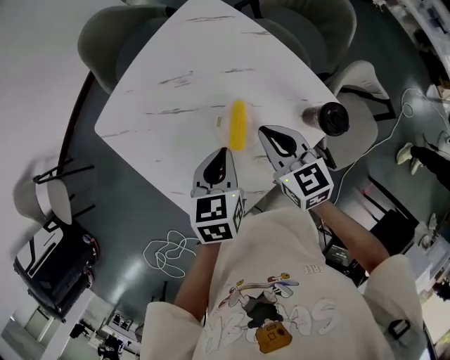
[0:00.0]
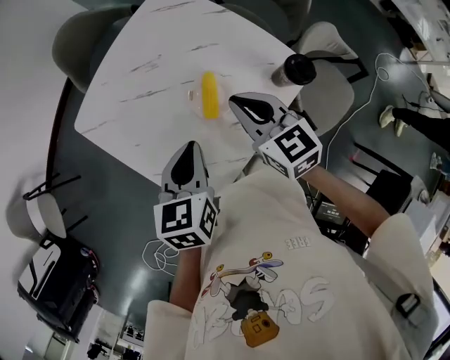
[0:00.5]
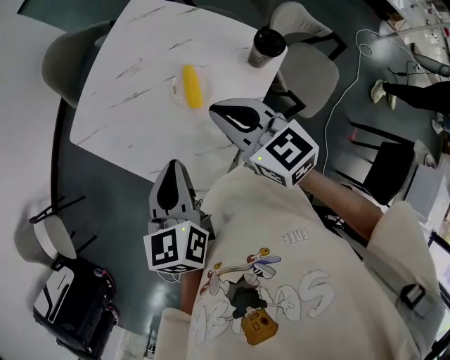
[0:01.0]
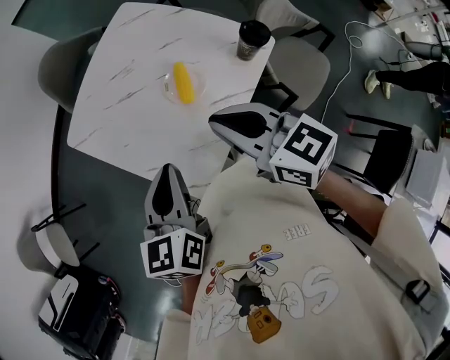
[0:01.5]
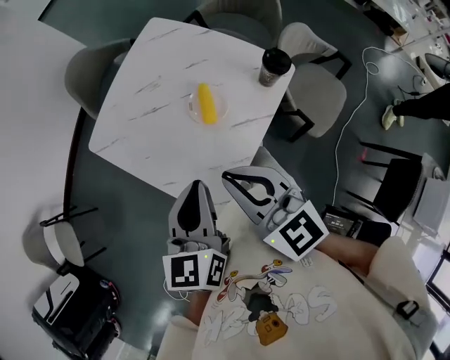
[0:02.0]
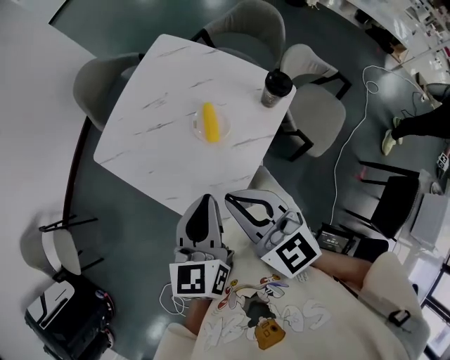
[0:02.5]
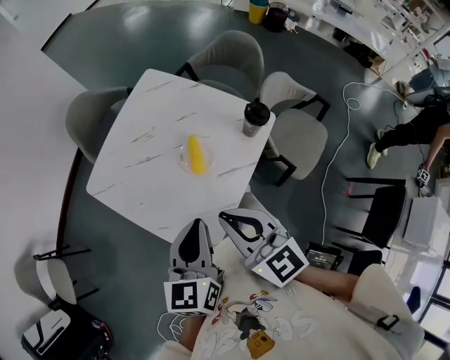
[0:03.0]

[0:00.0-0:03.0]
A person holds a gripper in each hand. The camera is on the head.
0:00.0 to 0:01.5: The left gripper moves backward, upward and to the left, approximately 25 cm. The right gripper heads backward and upward, covering roughly 25 cm.
0:01.5 to 0:03.0: The right gripper shifts by approximately 5 cm, while the left gripper shifts by about 5 cm.

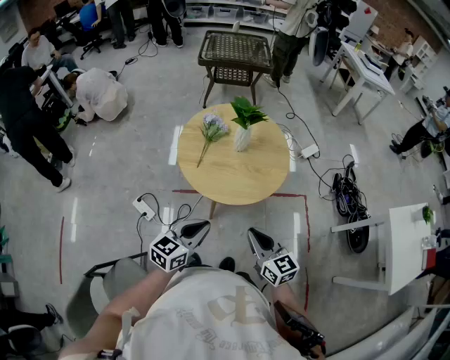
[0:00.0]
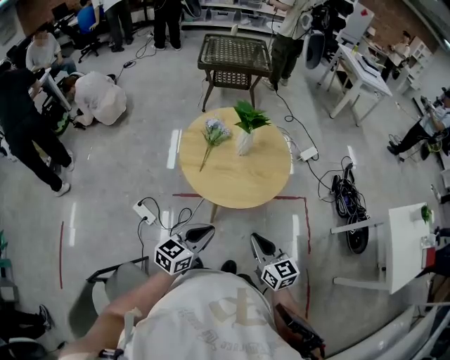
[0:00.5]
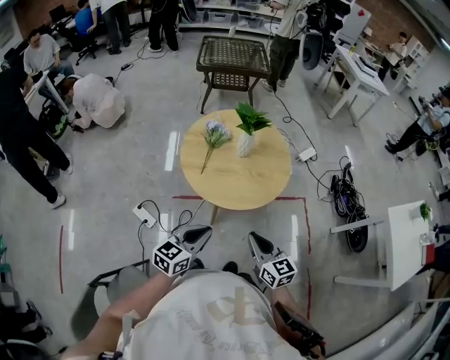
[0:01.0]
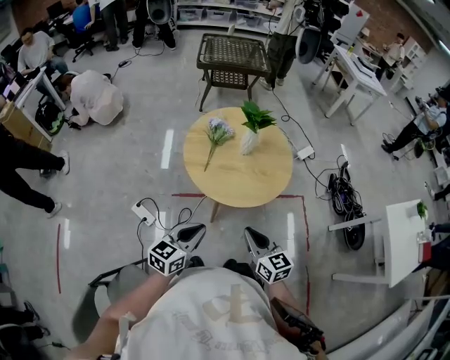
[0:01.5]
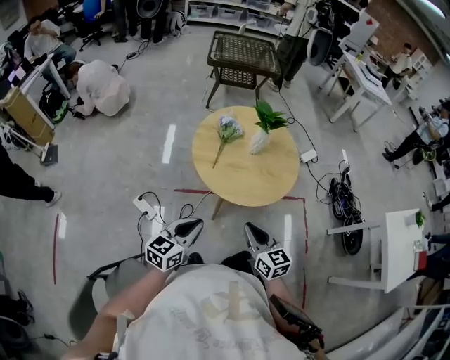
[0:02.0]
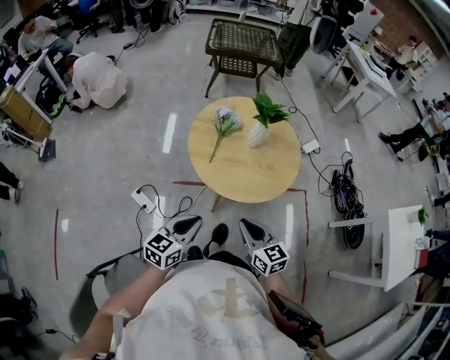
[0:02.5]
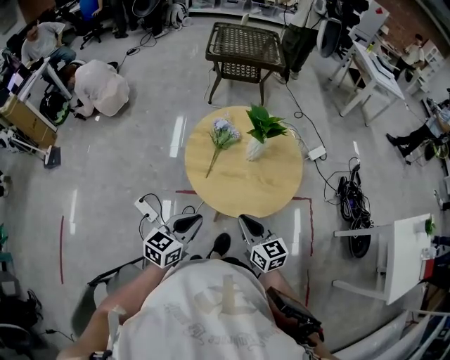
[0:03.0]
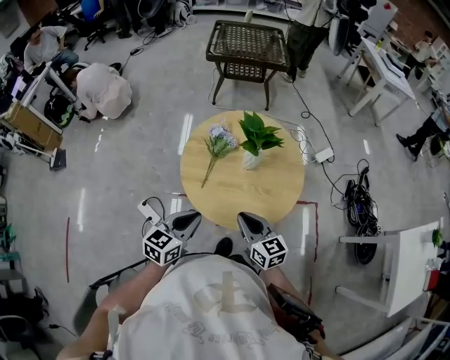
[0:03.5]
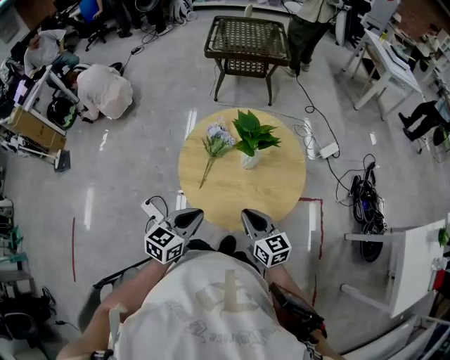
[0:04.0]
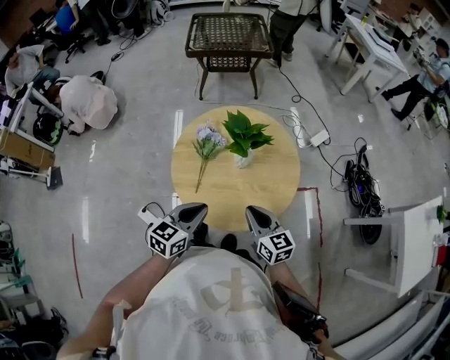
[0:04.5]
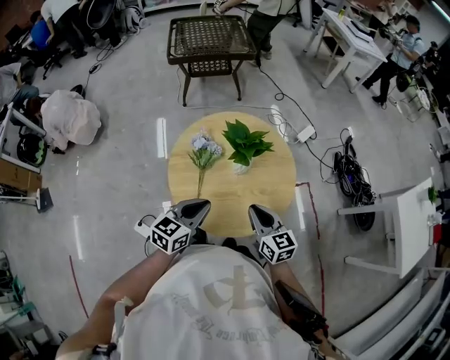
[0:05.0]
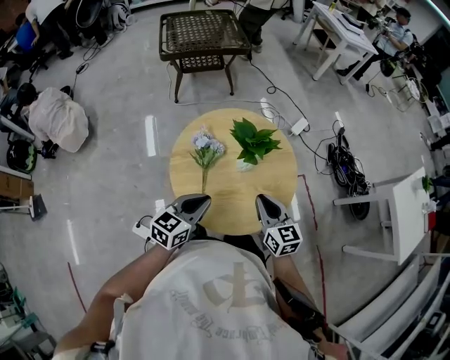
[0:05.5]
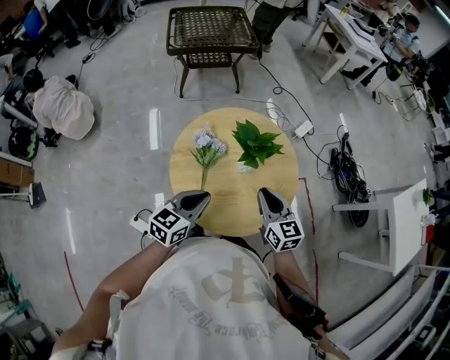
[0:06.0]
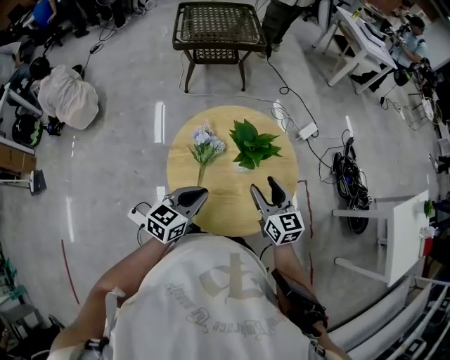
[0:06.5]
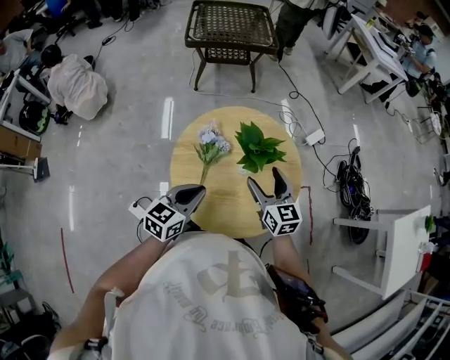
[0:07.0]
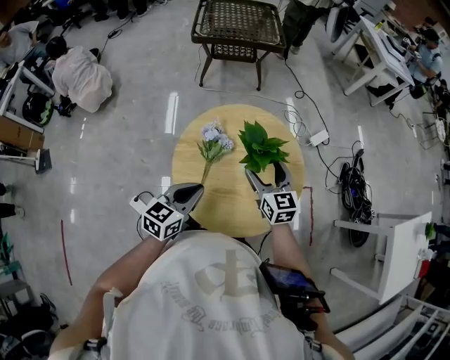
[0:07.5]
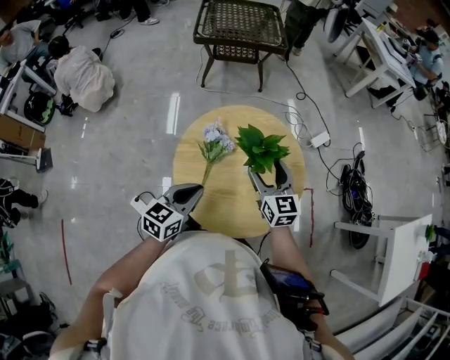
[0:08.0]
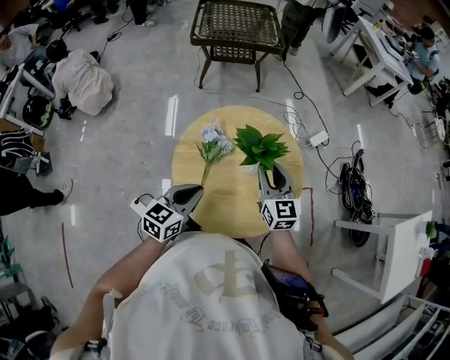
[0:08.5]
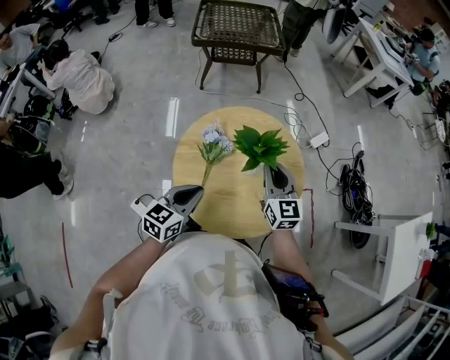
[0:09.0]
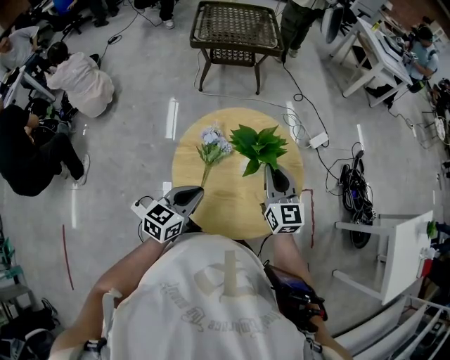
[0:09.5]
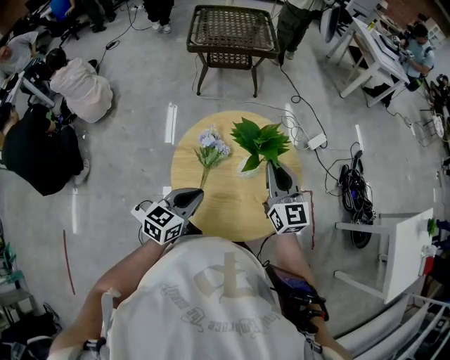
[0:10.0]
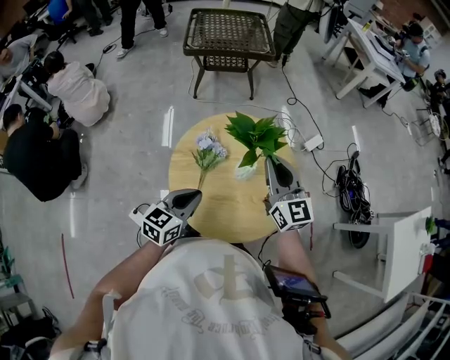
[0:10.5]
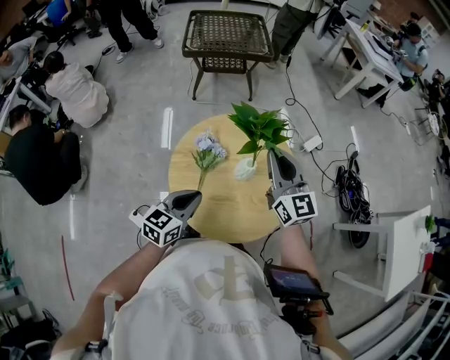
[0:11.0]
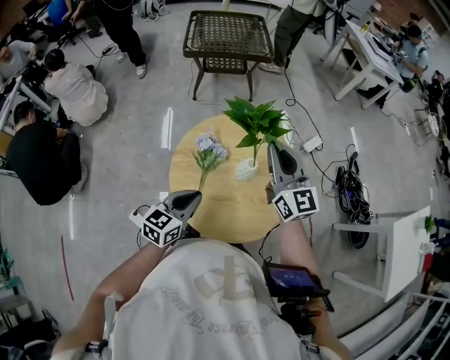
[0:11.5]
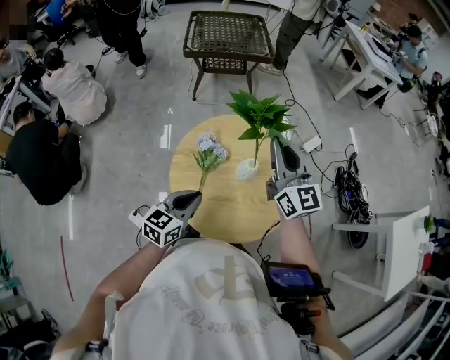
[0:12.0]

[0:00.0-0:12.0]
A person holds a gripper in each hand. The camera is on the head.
0:00.0 to 0:02.0: The two grippers go approximately 10 cm to the left.
0:02.0 to 0:04.0: The right gripper is displaced forward by roughly 20 cm; the left gripper heads forward and to the right, covering some 20 cm.
0:04.0 to 0:06.0: The left gripper shifts roughly 15 cm forward and to the left; the right gripper shifts some 10 cm forward, and changes its angle by about 20 degrees.
0:06.0 to 0:08.0: The right gripper shifts about 10 cm forward, and opens its fingers.
0:08.0 to 0:10.0: The right gripper heads upward, covering roughly 10 cm, and closes.
0:10.0 to 0:12.0: The right gripper is displaced upward by roughly 10 cm.

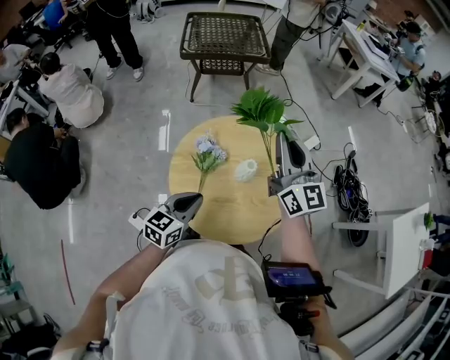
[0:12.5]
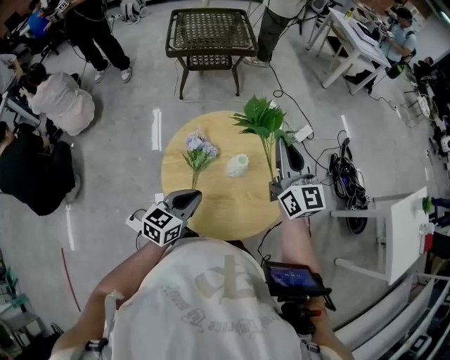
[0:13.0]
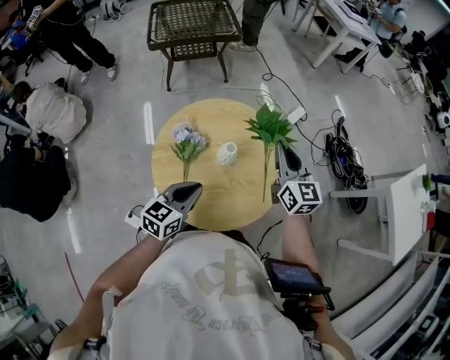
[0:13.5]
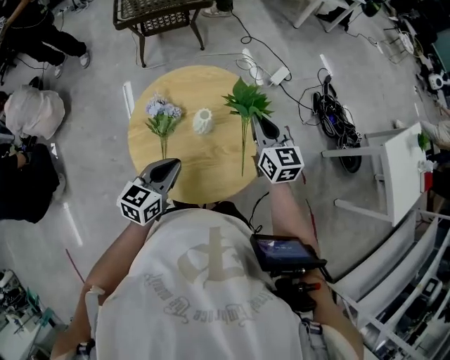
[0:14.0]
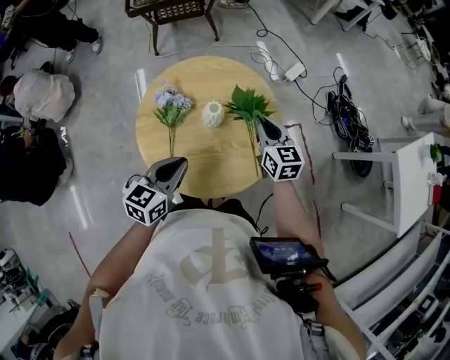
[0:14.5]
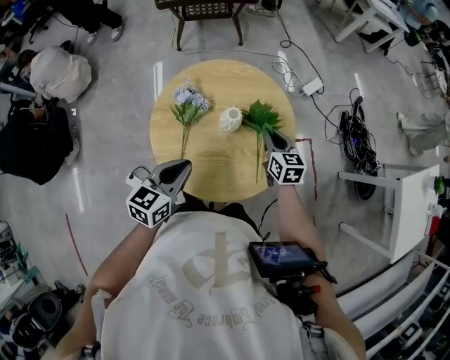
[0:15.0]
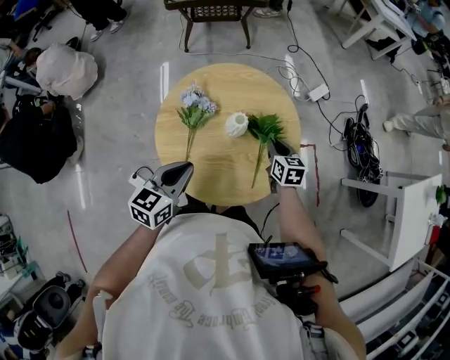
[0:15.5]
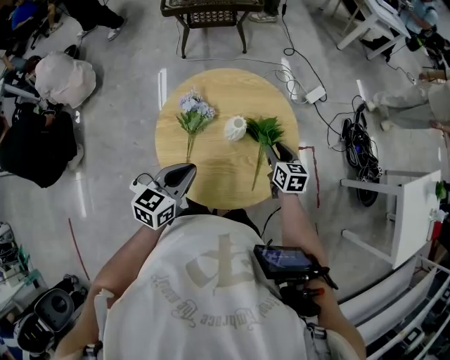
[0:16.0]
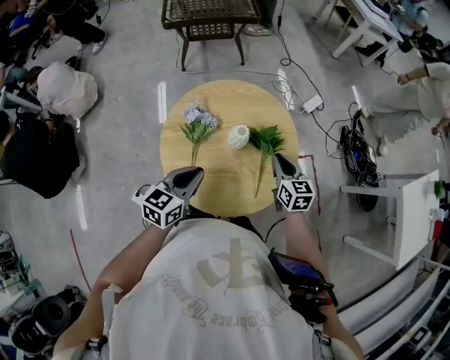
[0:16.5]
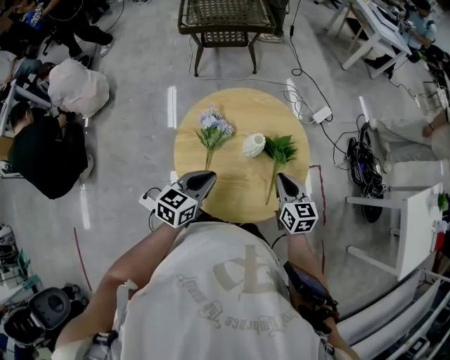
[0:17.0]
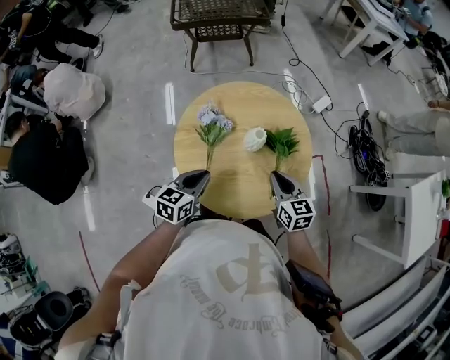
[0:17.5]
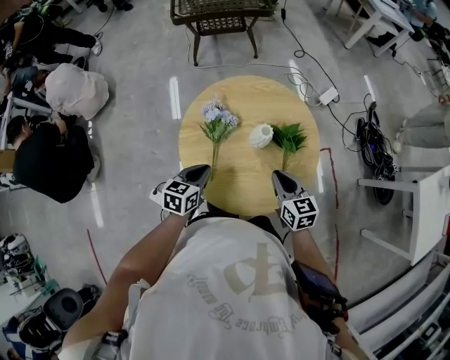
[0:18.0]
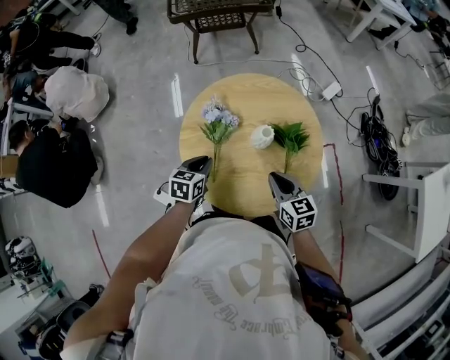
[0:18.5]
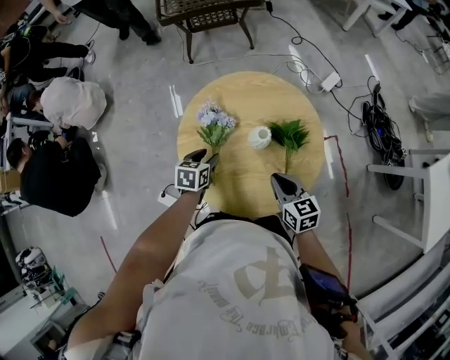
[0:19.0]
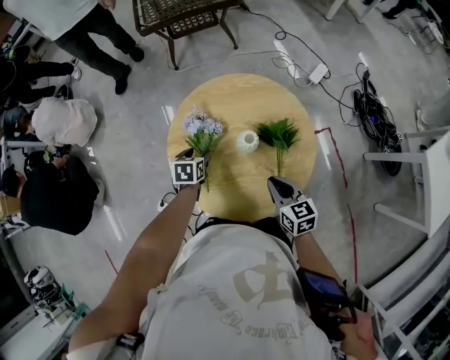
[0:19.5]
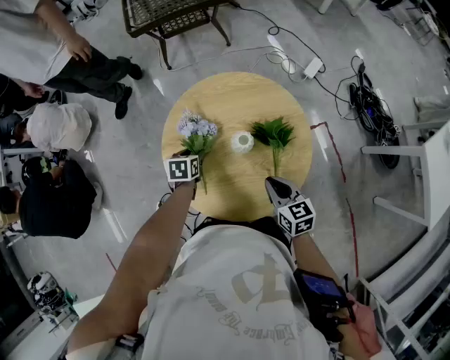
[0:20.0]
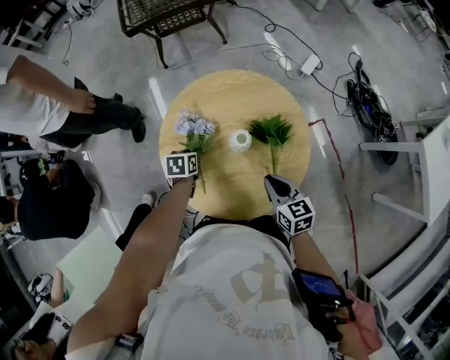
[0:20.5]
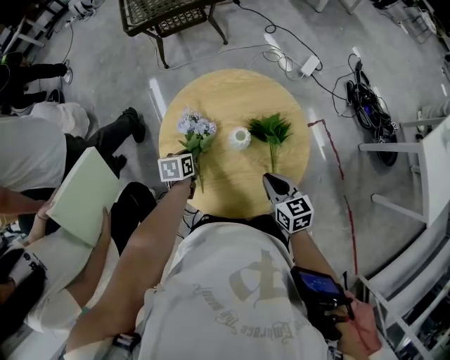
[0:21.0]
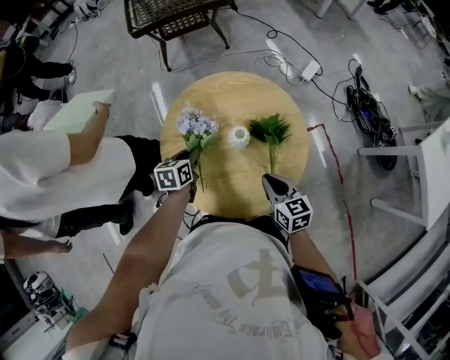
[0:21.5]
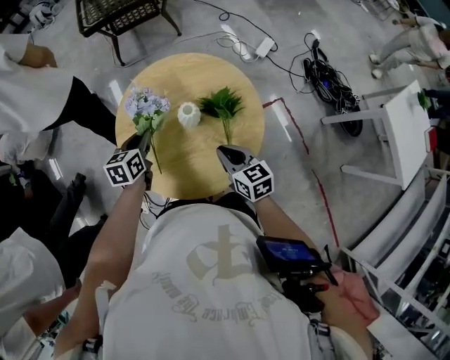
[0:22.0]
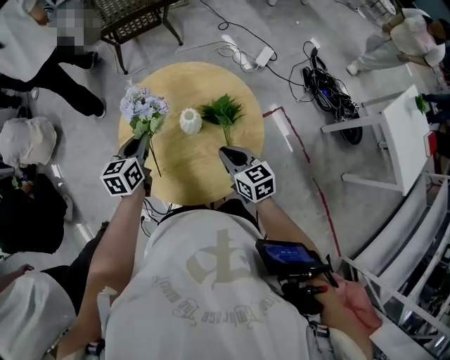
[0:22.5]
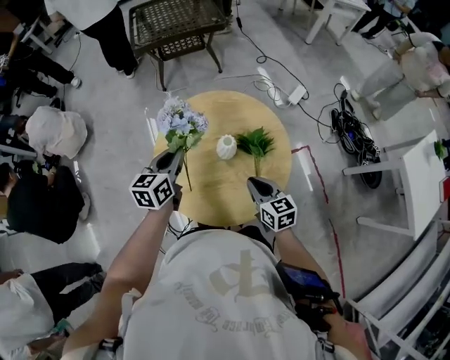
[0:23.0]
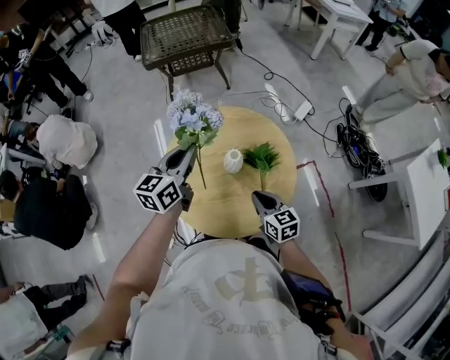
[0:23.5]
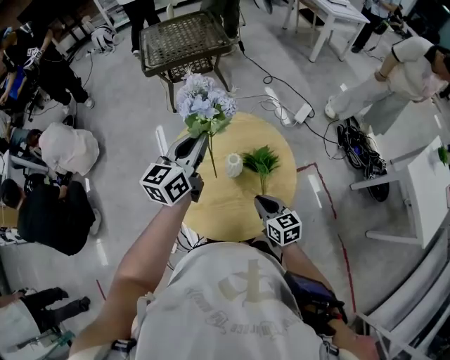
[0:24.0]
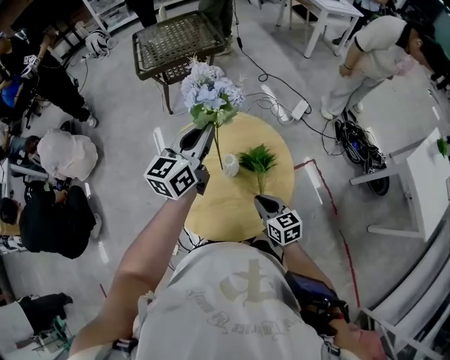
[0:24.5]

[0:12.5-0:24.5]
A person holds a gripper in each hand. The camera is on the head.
0:12.5 to 0:14.5: The left gripper moves to the right, roughly 5 cm. Meanwhile the right gripper moves downward and to the right, some 30 cm, and points its fingers roughly 30 degrees further downward.
0:14.5 to 0:16.5: The right gripper travels downward and back again, some 10 cm each way.
0:16.5 to 0:18.5: The left gripper goes some 15 cm downward and to the left, and turns by some 20 degrees, while the right gripper shifts approximately 10 cm to the left and backward.
0:18.5 to 0:20.5: The left gripper shifts some 10 cm forward and downward, and opens, then closes once more.
0:20.5 to 0:22.5: The left gripper is displaced upward by about 15 cm, and tilts its fingers approximately 30 degrees upward.
0:22.5 to 0:24.5: The left gripper travels upward and to the right by approximately 25 cm, and turns by roughly 30 degrees.
